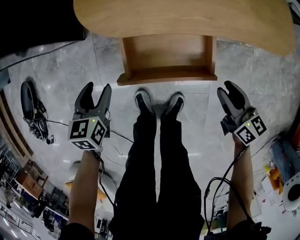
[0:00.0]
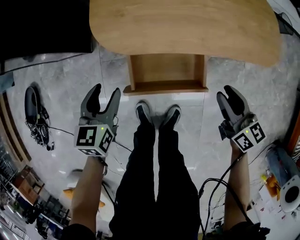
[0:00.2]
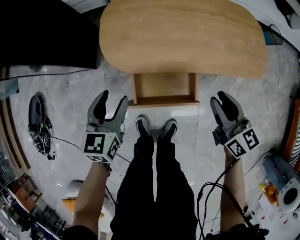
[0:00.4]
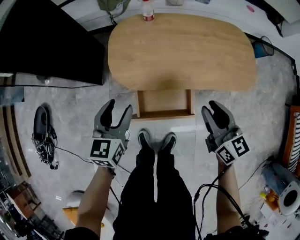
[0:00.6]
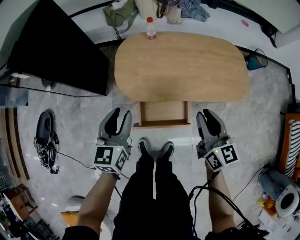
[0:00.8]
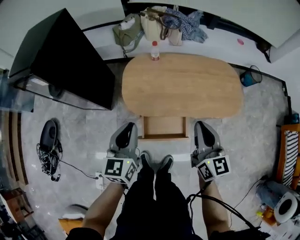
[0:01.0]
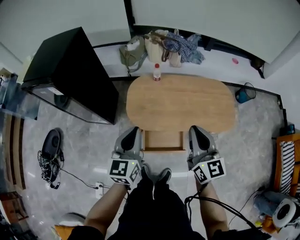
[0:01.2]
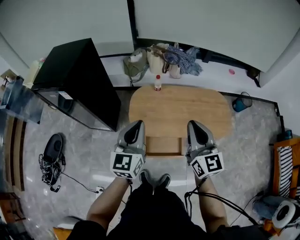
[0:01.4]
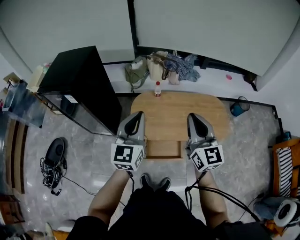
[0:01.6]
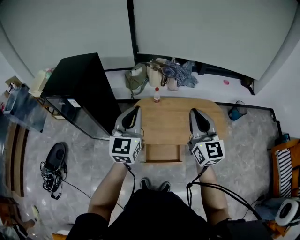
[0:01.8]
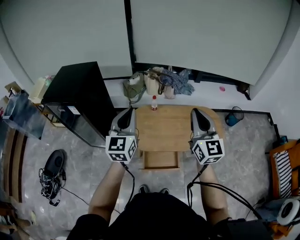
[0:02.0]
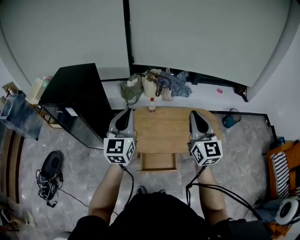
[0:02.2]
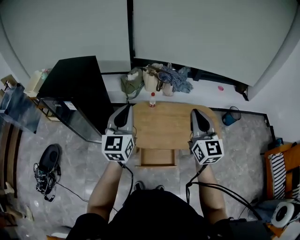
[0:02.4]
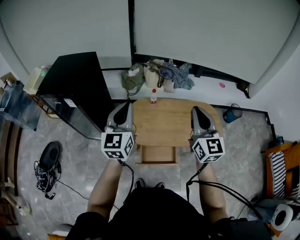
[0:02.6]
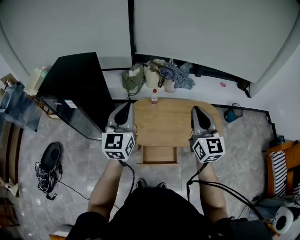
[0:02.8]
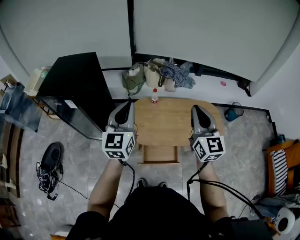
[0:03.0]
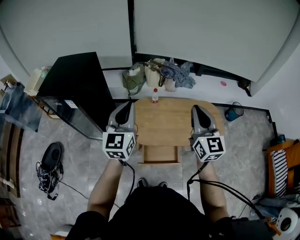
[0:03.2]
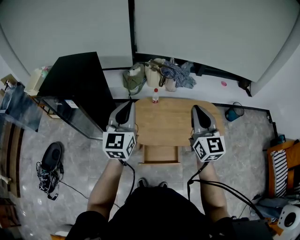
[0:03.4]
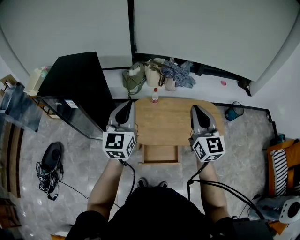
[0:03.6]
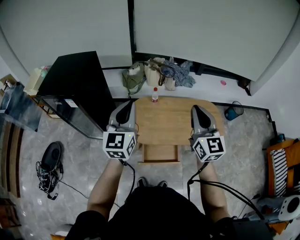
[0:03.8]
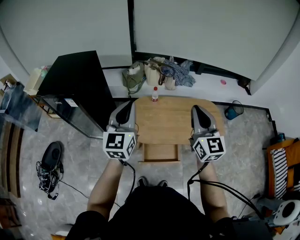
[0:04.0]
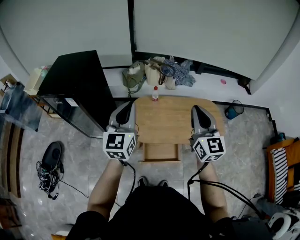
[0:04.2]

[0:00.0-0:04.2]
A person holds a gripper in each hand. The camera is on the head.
0.0 to 1.4 s: The two grippers go some 60 cm upward. The right gripper rotates roughly 40 degrees, and closes its fingers, while the left gripper tips its fingers upward by about 40 degrees, and closes up.
1.4 to 2.8 s: The left gripper moves upward and forward, about 10 cm. Meanwhile the right gripper moves upward, about 10 cm.
2.8 to 4.2 s: Neither gripper changes place.

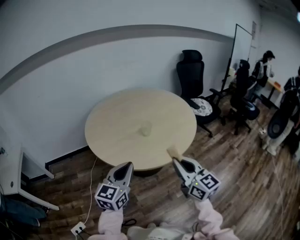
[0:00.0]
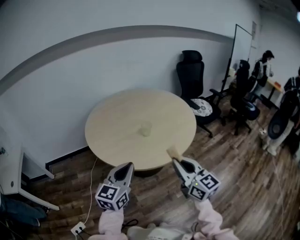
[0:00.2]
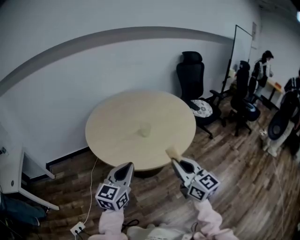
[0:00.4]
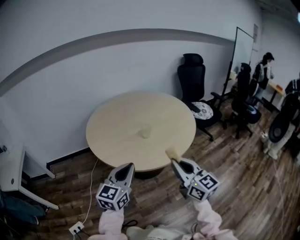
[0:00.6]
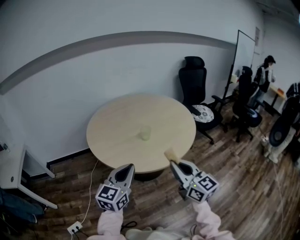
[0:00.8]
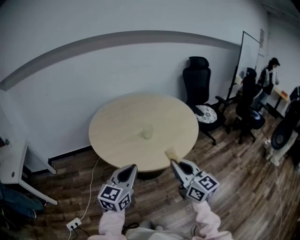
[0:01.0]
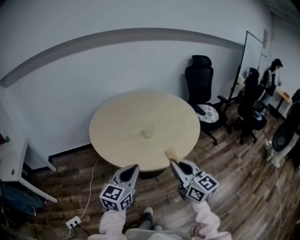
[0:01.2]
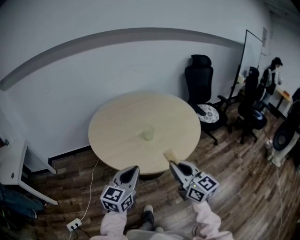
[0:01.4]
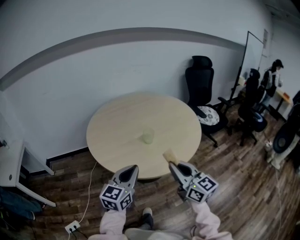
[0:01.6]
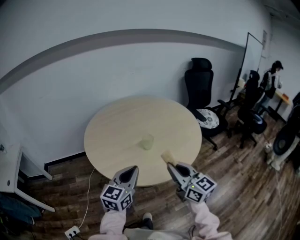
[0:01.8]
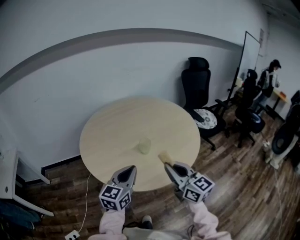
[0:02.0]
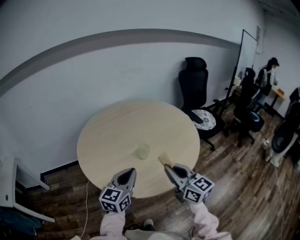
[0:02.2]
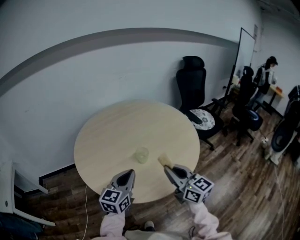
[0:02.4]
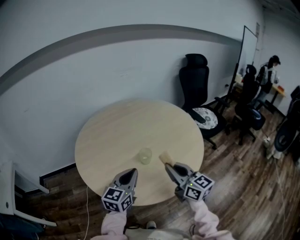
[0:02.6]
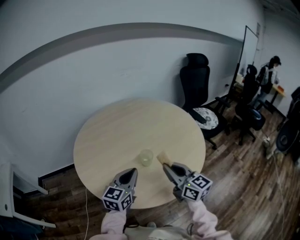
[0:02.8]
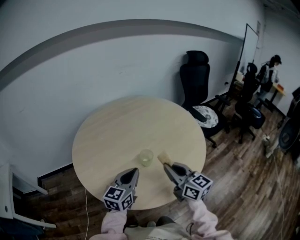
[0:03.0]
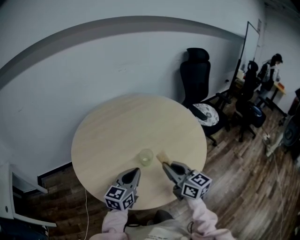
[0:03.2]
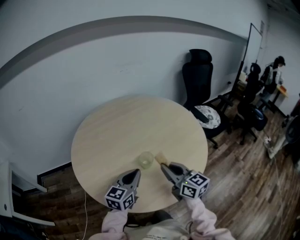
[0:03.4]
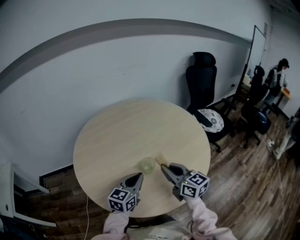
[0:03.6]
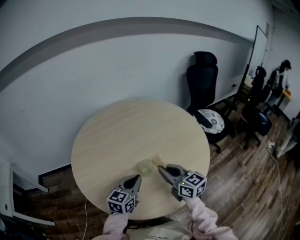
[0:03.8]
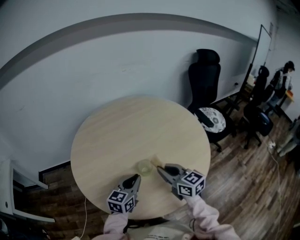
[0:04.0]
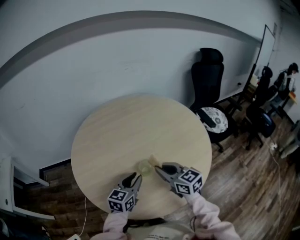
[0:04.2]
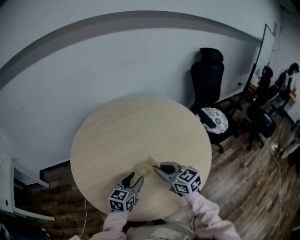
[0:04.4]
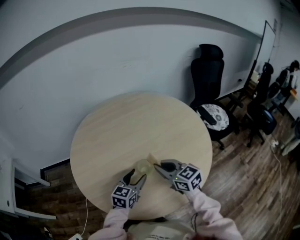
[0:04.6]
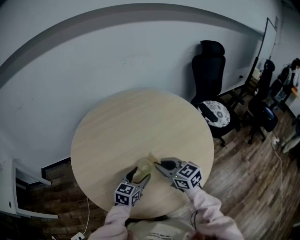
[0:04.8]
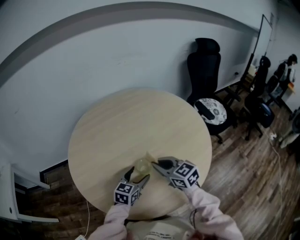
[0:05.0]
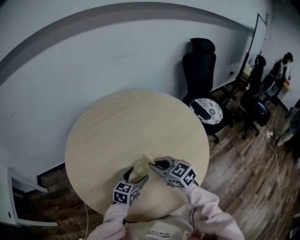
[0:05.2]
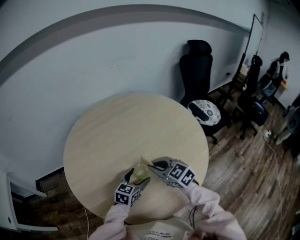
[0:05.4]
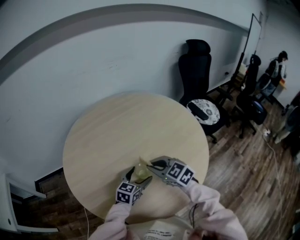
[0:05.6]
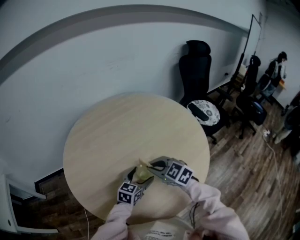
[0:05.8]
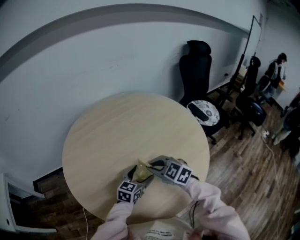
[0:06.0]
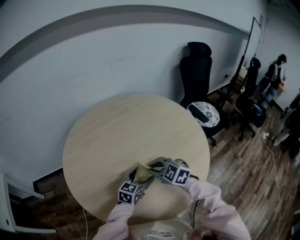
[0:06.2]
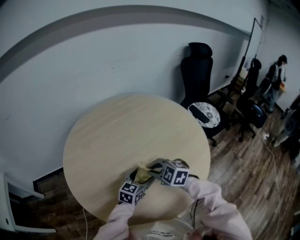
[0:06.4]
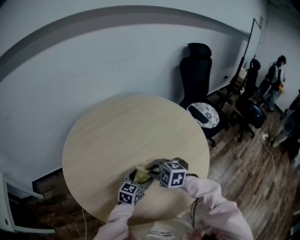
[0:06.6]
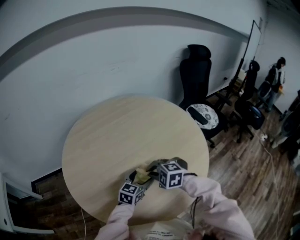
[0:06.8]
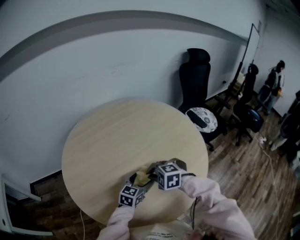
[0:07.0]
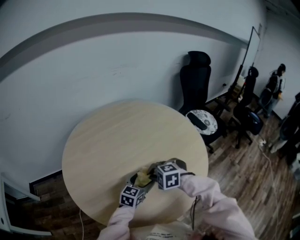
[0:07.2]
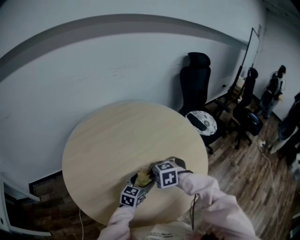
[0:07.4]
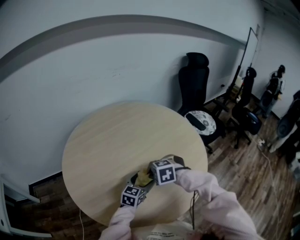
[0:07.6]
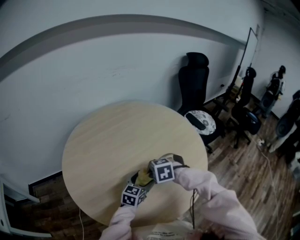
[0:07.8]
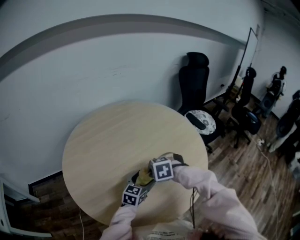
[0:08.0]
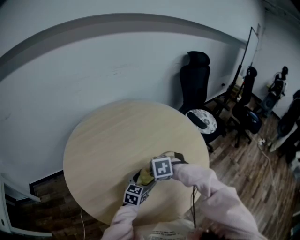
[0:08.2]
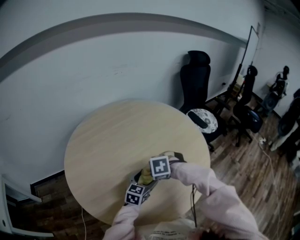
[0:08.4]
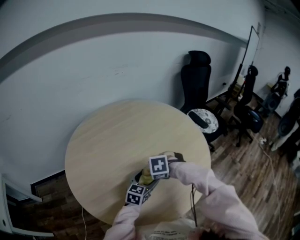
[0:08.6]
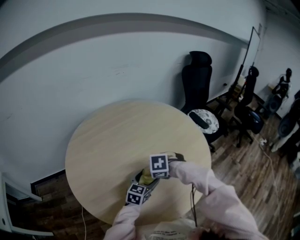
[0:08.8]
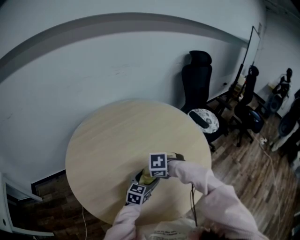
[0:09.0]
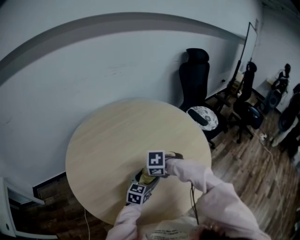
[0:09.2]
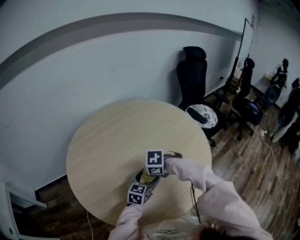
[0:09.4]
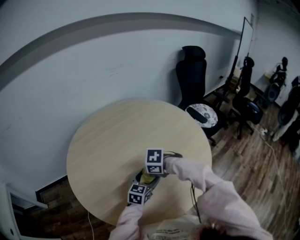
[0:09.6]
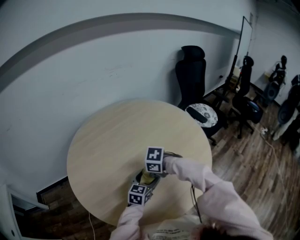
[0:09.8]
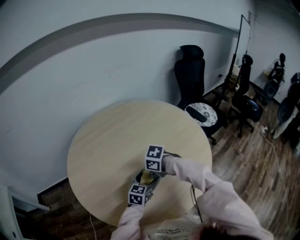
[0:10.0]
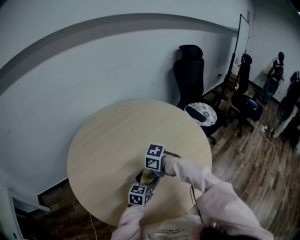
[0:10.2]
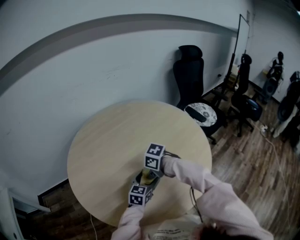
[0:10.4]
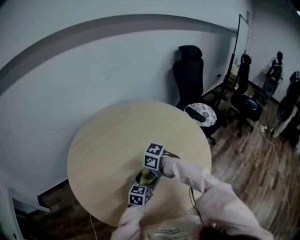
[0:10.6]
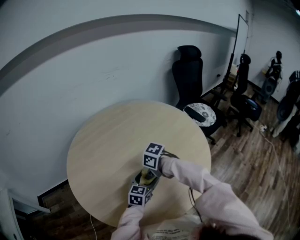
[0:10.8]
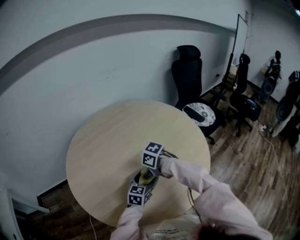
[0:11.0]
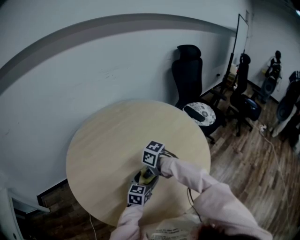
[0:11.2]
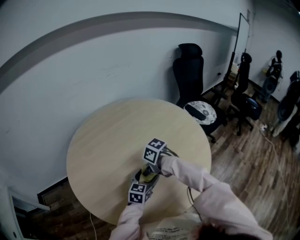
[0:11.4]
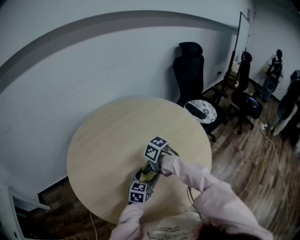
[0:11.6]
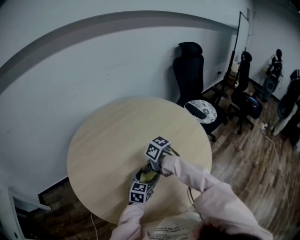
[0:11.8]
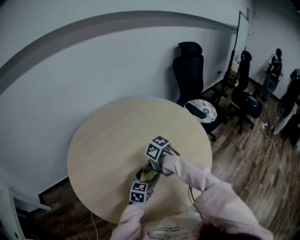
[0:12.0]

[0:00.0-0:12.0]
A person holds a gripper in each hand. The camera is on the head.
0.0 to 1.6 s: The left gripper ends up approximately 5 cm from where it was; the right gripper is displaced forward by approximately 5 cm.
1.6 to 3.0 s: Both grippers travel together forward, approximately 20 cm.
3.0 to 4.4 s: The left gripper goes roughly 10 cm downward and forward, and opens up. The right gripper shifts roughly 10 cm forward, and swivels about 20 degrees.
4.4 to 6.0 s: The right gripper ends up roughly 5 cm from where it was, and rotates some 30 degrees. The left gripper is displaced downward by about 5 cm, and opens.
6.0 to 7.6 s: The right gripper heads downward, covering approximately 5 cm, and angles its fingers downward, by about 40 degrees.
7.6 to 9.0 s: The right gripper turns by approximately 20 degrees.
9.0 to 10.4 s: The right gripper swivels roughly 40 degrees.
10.4 to 12.0 s: The right gripper rotates roughly 20 degrees.

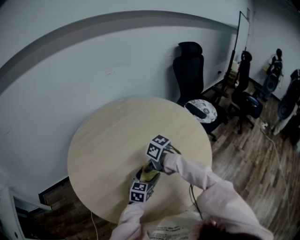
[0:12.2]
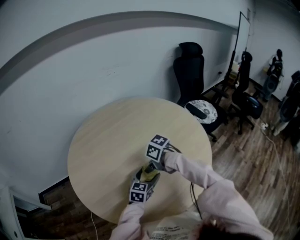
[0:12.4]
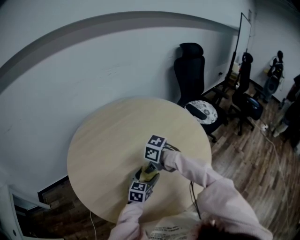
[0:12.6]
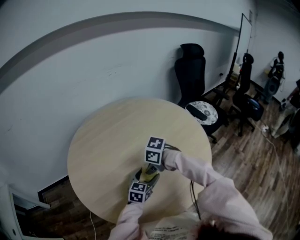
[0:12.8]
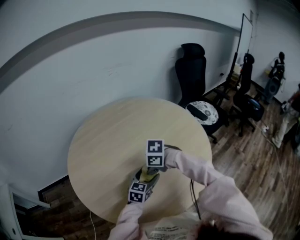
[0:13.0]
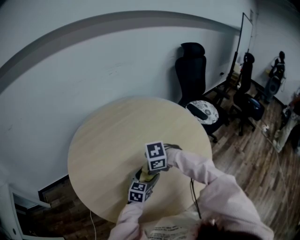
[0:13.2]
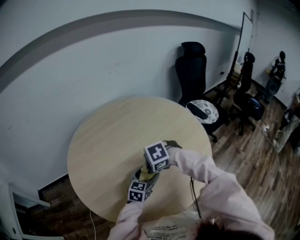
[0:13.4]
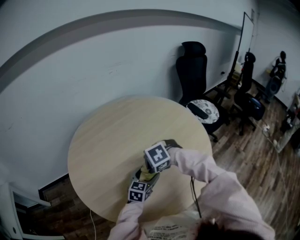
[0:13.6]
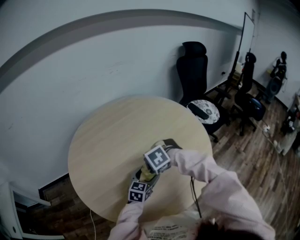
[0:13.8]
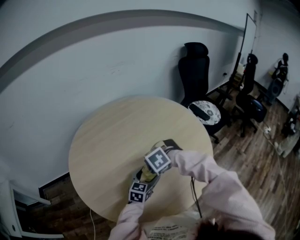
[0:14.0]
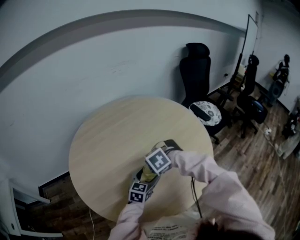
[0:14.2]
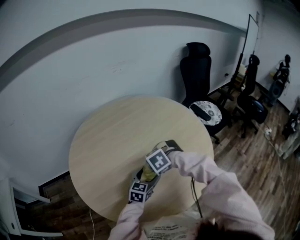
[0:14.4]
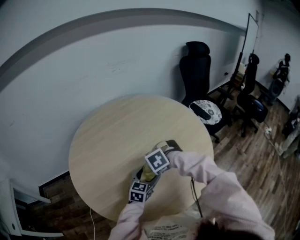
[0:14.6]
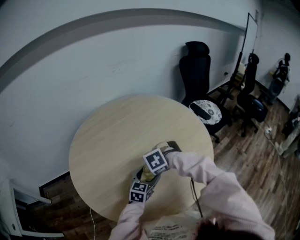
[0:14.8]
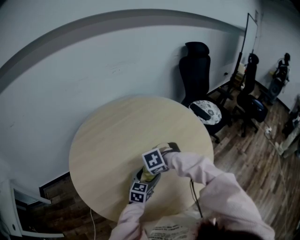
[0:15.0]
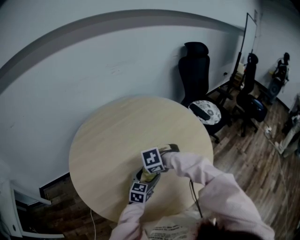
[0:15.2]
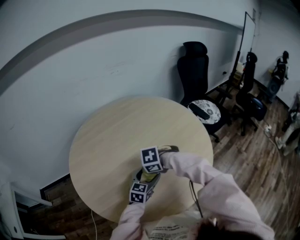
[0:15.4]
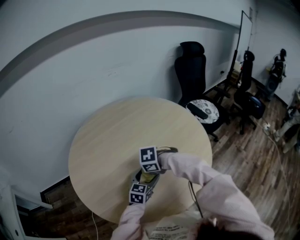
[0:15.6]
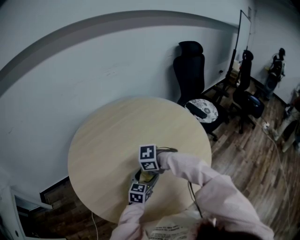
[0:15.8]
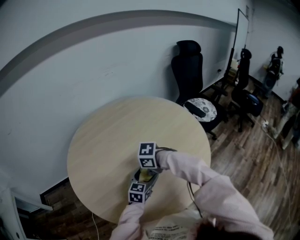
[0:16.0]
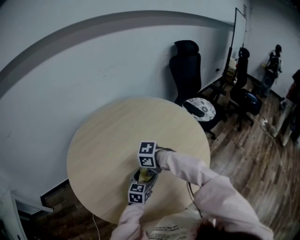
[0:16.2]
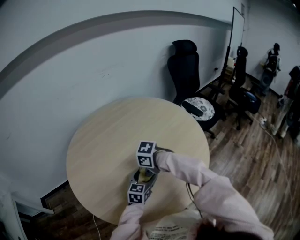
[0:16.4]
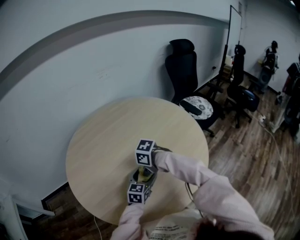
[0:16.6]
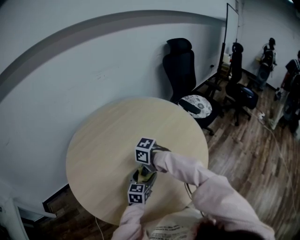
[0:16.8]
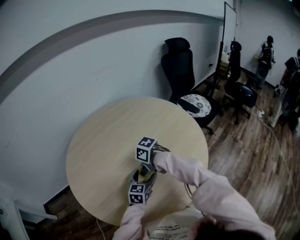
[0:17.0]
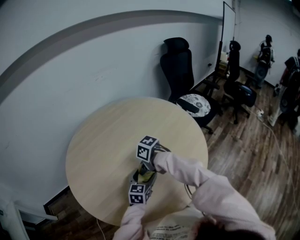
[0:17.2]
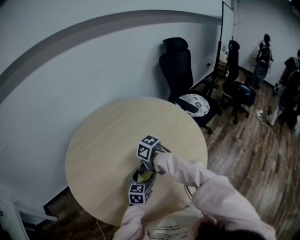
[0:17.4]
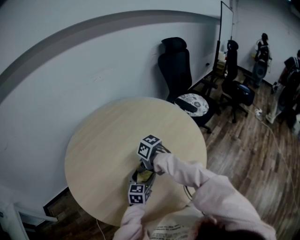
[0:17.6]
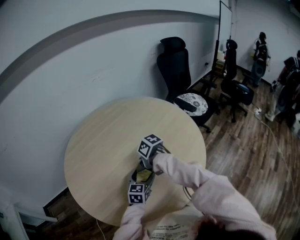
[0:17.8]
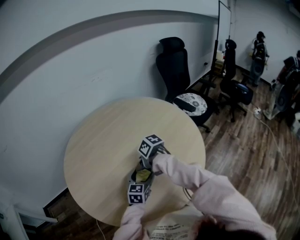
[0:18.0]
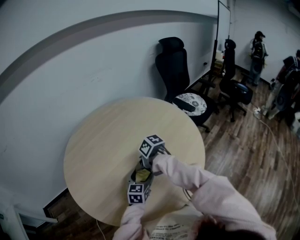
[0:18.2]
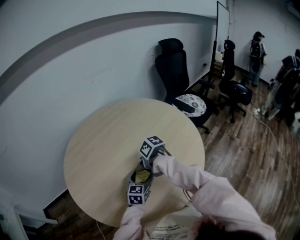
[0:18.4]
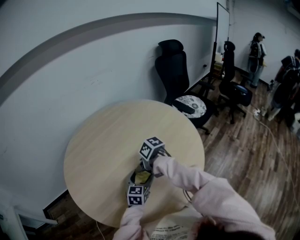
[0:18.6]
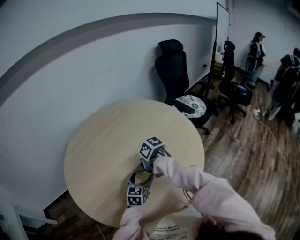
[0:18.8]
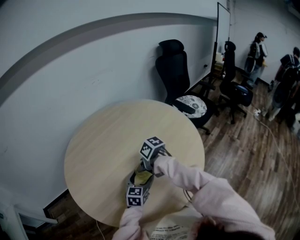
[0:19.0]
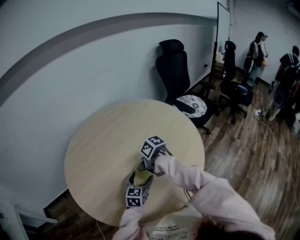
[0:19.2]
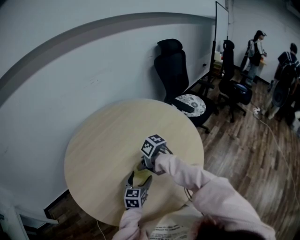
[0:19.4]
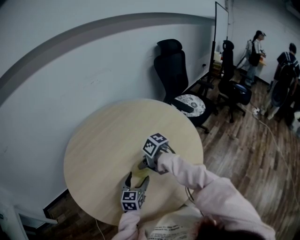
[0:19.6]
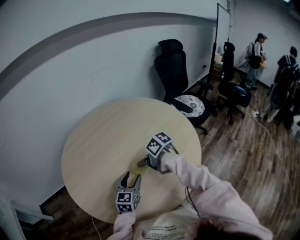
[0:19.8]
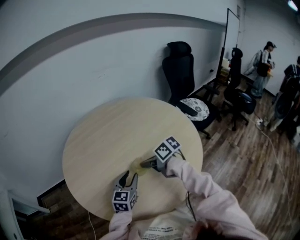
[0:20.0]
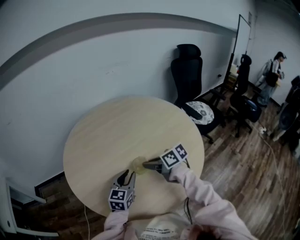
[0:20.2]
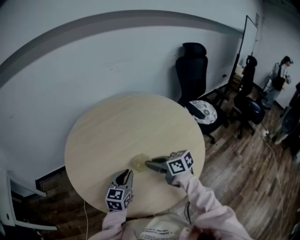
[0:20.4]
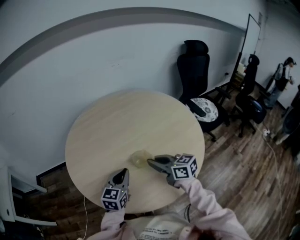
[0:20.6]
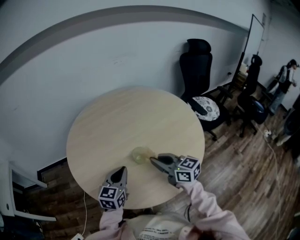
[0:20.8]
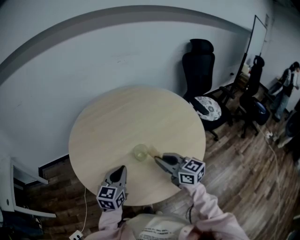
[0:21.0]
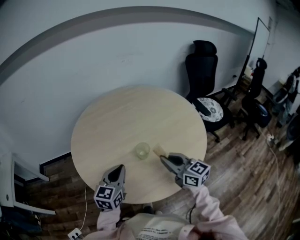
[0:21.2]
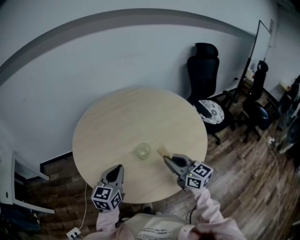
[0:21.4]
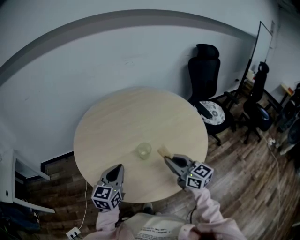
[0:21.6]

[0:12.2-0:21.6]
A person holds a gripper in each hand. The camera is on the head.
12.2 to 13.8 s: The right gripper twists roughly 80 degrees counterclockwise, seen from behind.
13.8 to 15.4 s: The right gripper turns by about 30 degrees.
15.4 to 17.0 s: The right gripper rolls clockwise, seen from behind, by about 40 degrees.
17.0 to 18.4 s: The right gripper swivels about 30 degrees.
18.4 to 20.0 s: The left gripper moves to the left and upward, some 10 cm, and closes up. Meanwhile the right gripper shifts by roughly 5 cm, and swivels about 20 degrees.
20.0 to 21.6 s: The left gripper is displaced upward, to the left and backward by roughly 15 cm, and closes up. Meanwhile the right gripper goes some 15 cm backward, upward and to the right, and rotates roughly 50 degrees.
